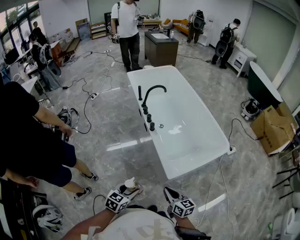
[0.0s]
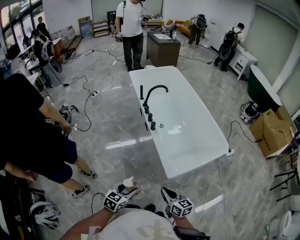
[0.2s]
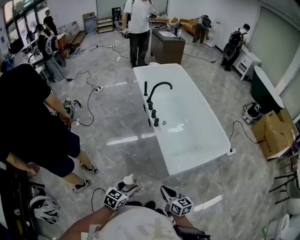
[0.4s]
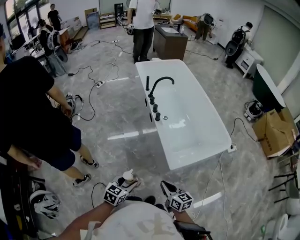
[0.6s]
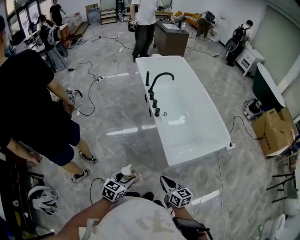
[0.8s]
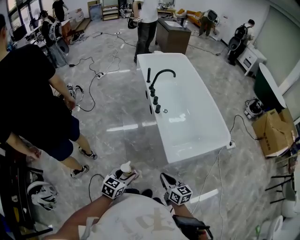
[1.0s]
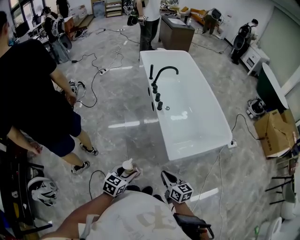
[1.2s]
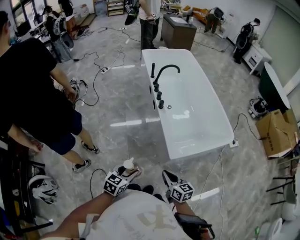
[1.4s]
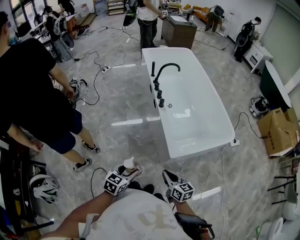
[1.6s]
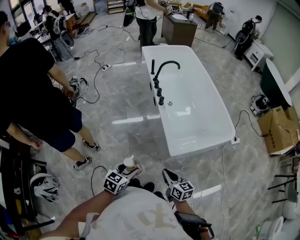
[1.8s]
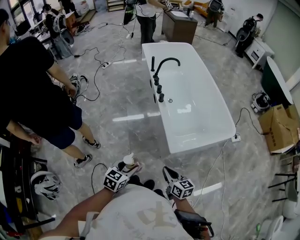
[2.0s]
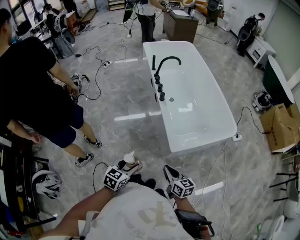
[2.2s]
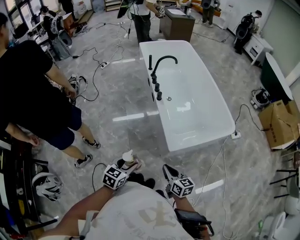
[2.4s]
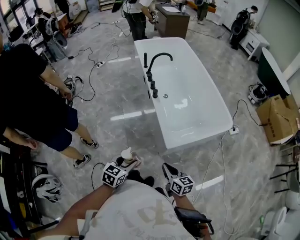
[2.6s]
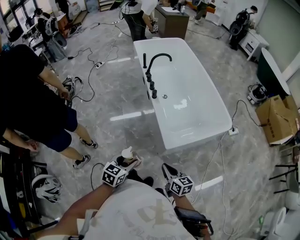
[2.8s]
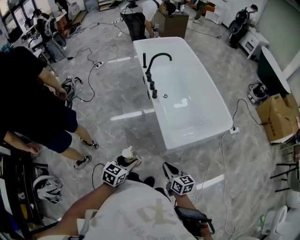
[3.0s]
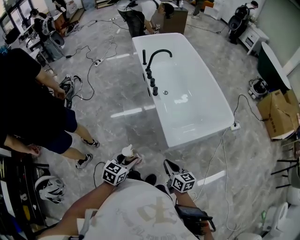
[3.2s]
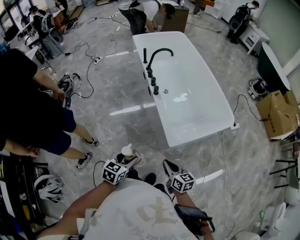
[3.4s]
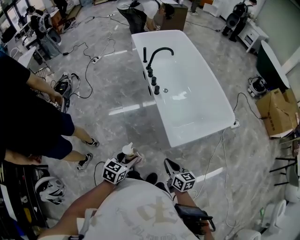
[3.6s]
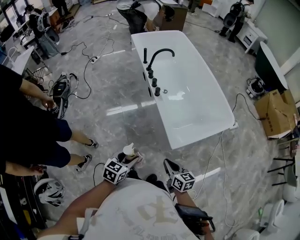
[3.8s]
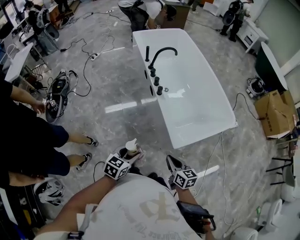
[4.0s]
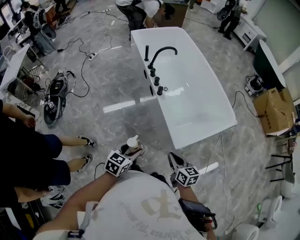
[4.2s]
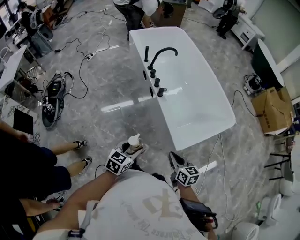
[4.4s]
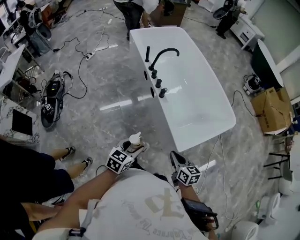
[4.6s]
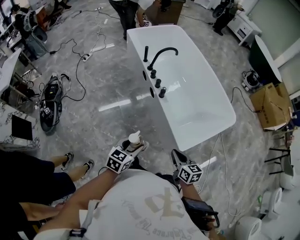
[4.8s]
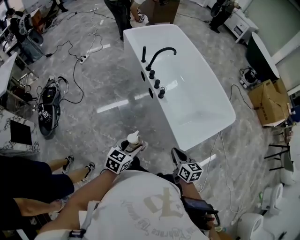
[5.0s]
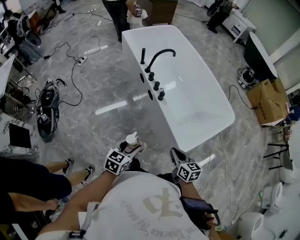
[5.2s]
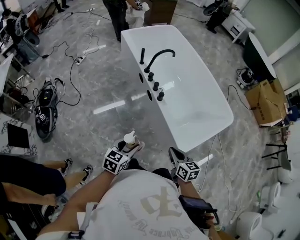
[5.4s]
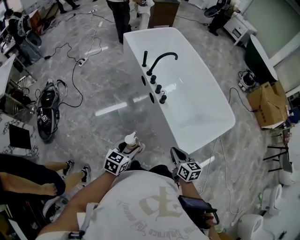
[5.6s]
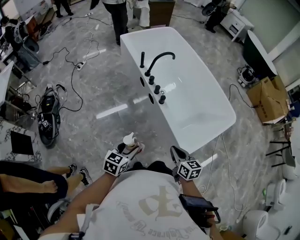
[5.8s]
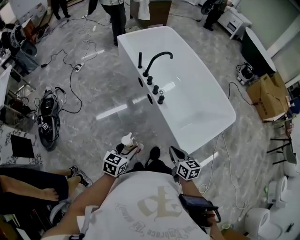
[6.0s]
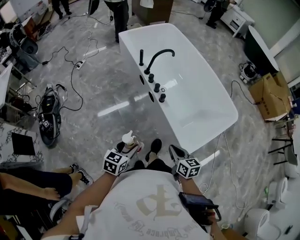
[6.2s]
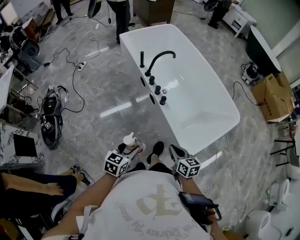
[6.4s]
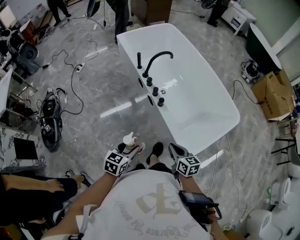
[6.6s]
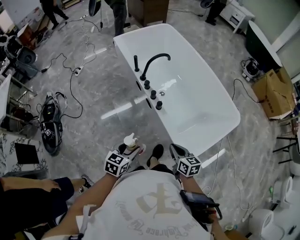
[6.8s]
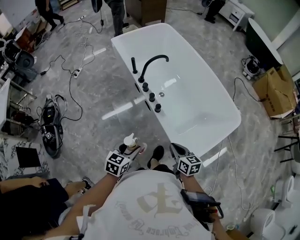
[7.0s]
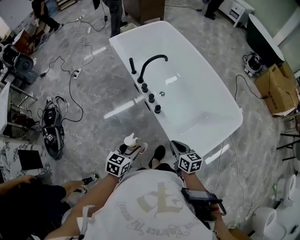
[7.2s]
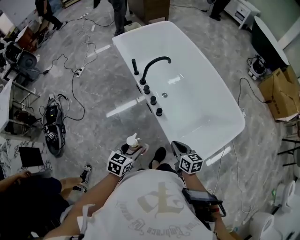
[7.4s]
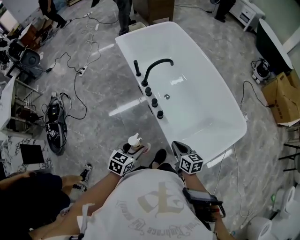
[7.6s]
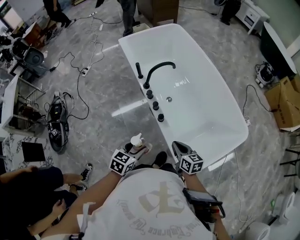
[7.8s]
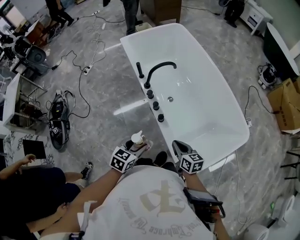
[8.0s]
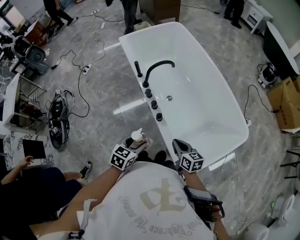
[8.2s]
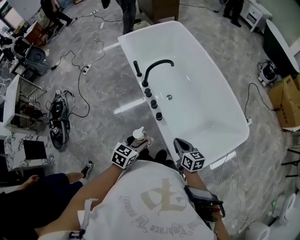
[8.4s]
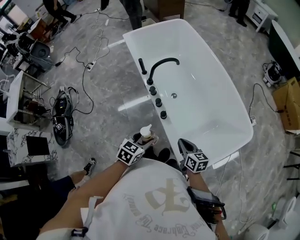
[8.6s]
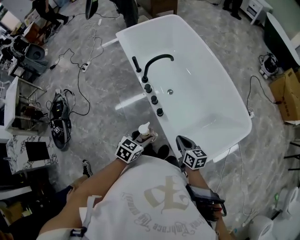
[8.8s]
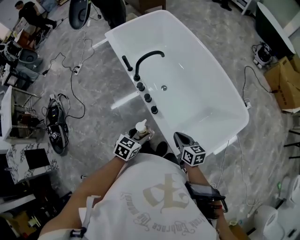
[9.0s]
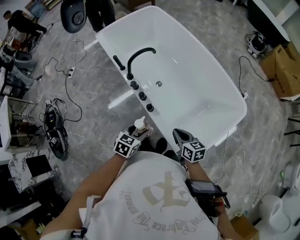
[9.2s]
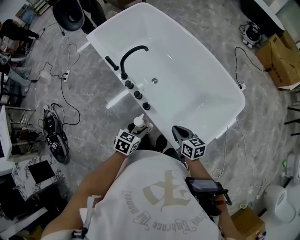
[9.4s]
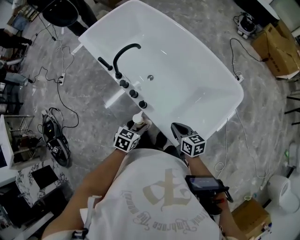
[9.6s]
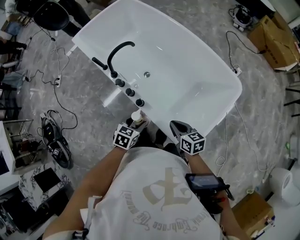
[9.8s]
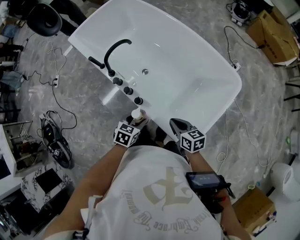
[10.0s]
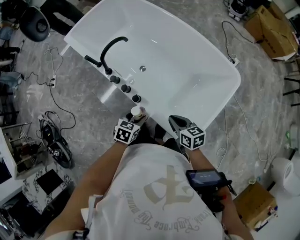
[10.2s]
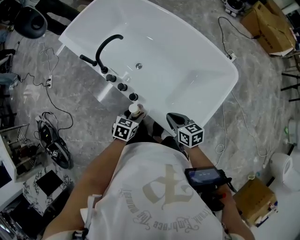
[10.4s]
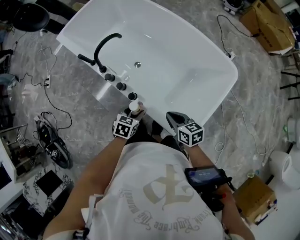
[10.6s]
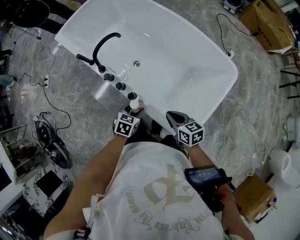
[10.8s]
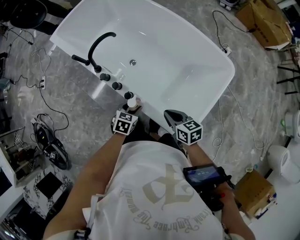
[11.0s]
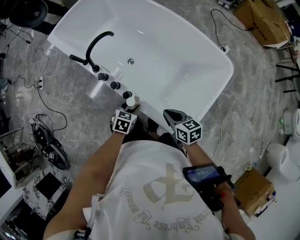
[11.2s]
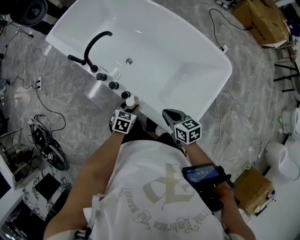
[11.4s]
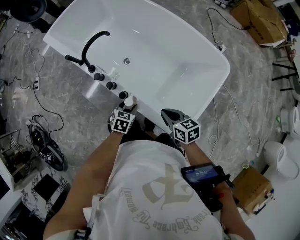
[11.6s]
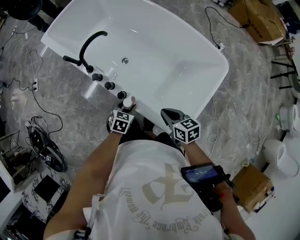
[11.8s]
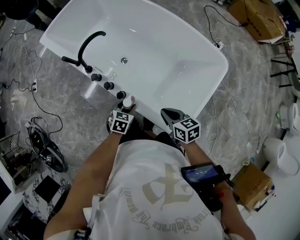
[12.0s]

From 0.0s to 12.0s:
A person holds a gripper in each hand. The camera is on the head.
From 0.0s to 1.6s: The left gripper changes place by some 5 cm.
From 1.6s to 3.0s: The grippers stay close to where they were, moving slightly.
From 3.0s to 4.4s: The grippers both shift forward and to the left by roughly 15 cm.
From 4.4s to 6.0s: The right gripper shifts roughly 10 cm forward and to the left. Meanwhile the left gripper is displaced to the left and forward by roughly 15 cm.
From 6.0s to 7.6s: The right gripper moves forward, some 20 cm, while the left gripper is displaced forward and to the right by some 20 cm.
From 7.6s to 9.0s: The right gripper shifts by roughly 5 cm, while the left gripper heads forward and to the right, covering roughly 10 cm.
From 9.0s to 10.4s: The left gripper is displaced downward, forward and to the right by some 10 cm.
From 10.4s to 12.0s: The left gripper travels downward by roughly 5 cm.

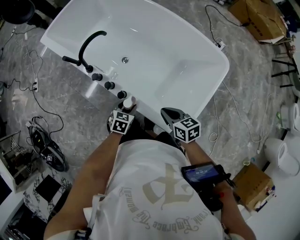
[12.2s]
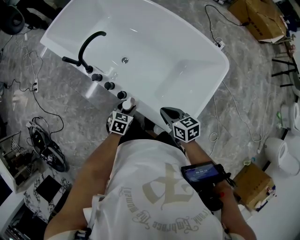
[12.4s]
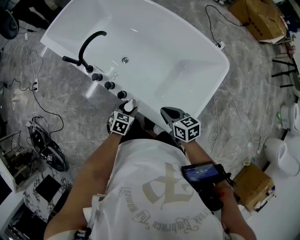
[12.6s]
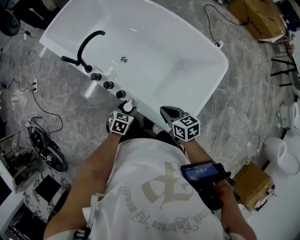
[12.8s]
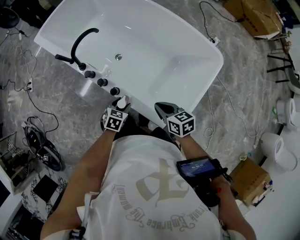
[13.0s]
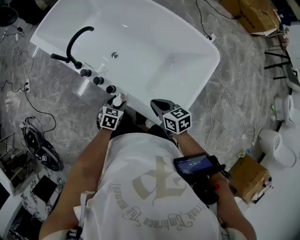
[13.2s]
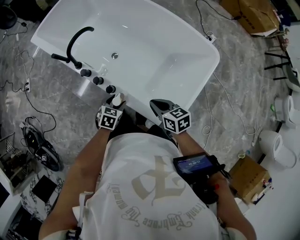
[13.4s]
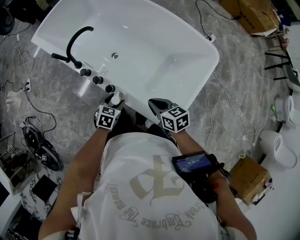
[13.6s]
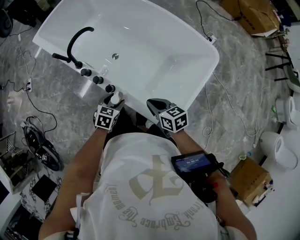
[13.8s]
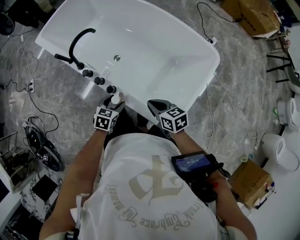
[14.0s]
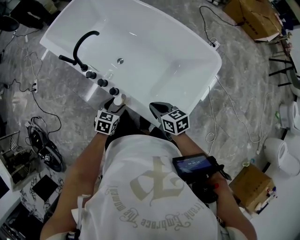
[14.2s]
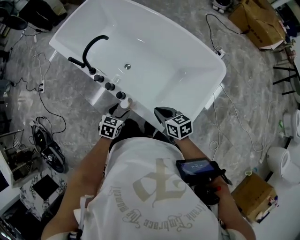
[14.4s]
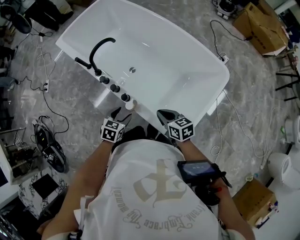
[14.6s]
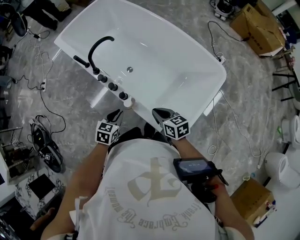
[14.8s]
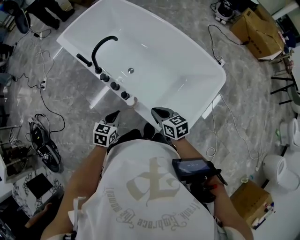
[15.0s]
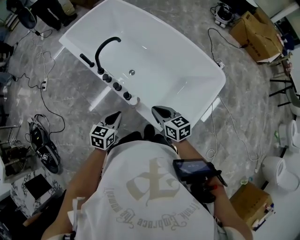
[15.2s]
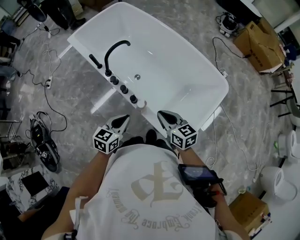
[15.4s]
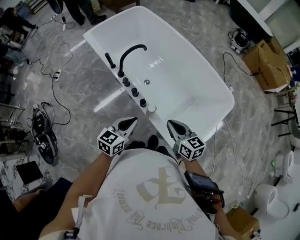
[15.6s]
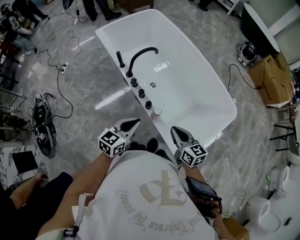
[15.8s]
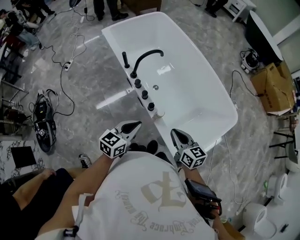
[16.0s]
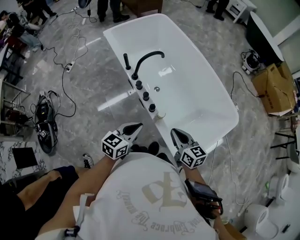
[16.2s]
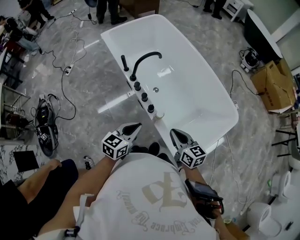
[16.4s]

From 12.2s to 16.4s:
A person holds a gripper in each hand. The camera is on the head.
From 12.2s to 13.6s: The grippers move only a little.
From 13.6s to 15.0s: The left gripper heads upward and to the left, covering approximately 10 cm, and closes up.
From 15.0s to 16.4s: The right gripper is displaced upward and to the left by about 10 cm. Meanwhile the left gripper shifts some 10 cm upward, and turns by approximately 20 degrees.

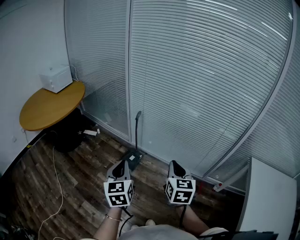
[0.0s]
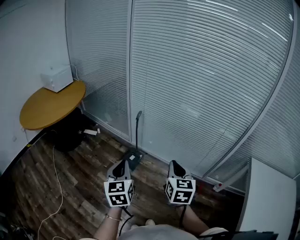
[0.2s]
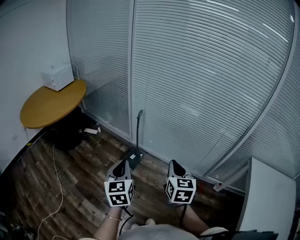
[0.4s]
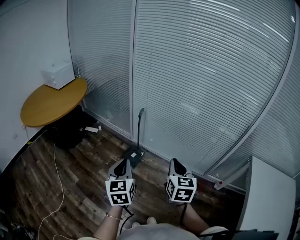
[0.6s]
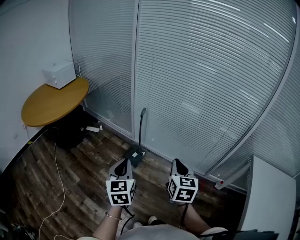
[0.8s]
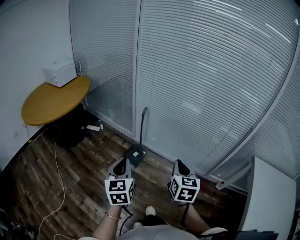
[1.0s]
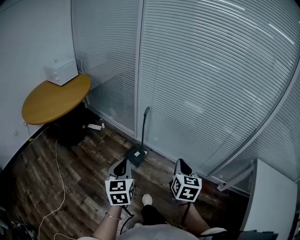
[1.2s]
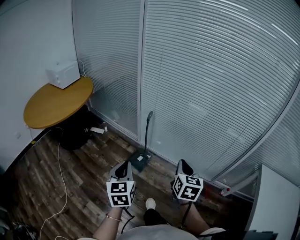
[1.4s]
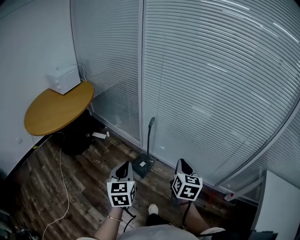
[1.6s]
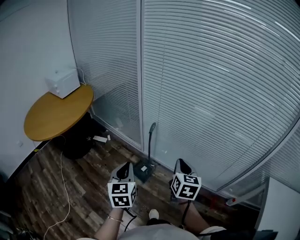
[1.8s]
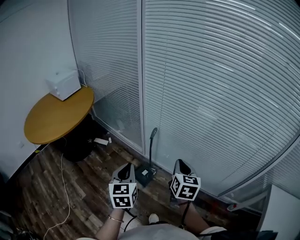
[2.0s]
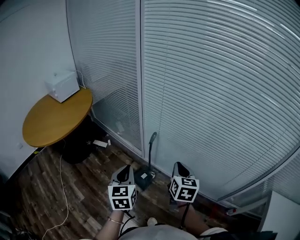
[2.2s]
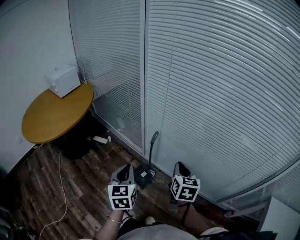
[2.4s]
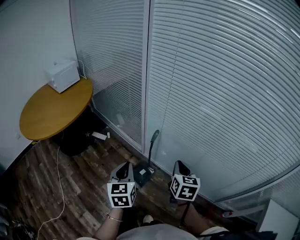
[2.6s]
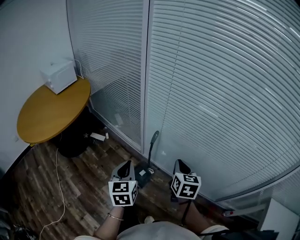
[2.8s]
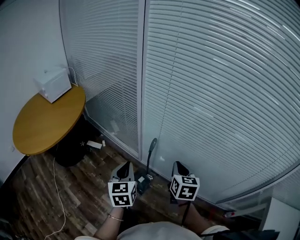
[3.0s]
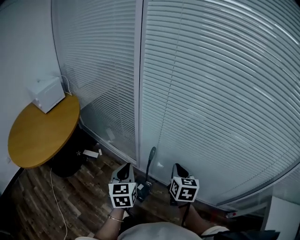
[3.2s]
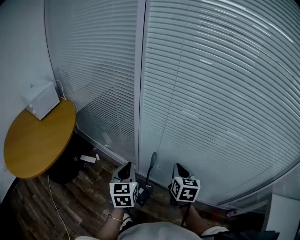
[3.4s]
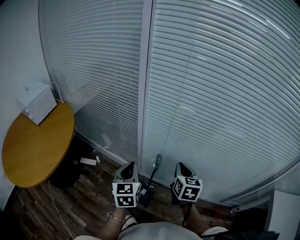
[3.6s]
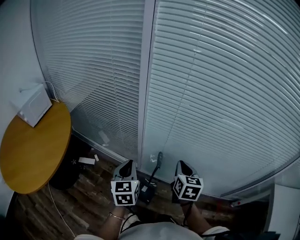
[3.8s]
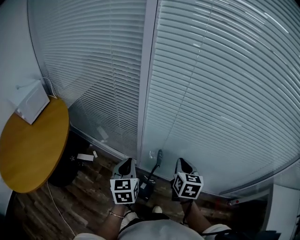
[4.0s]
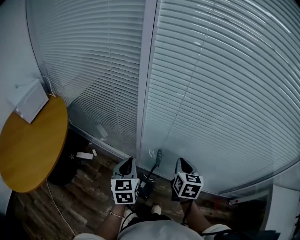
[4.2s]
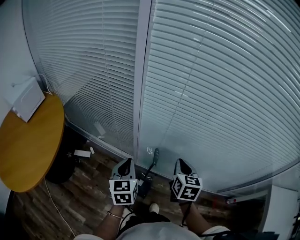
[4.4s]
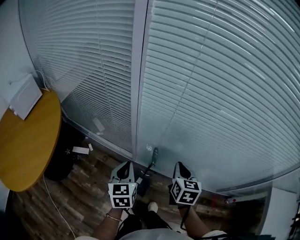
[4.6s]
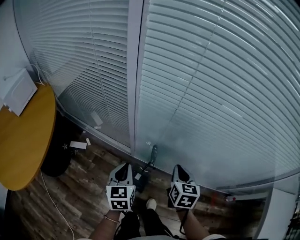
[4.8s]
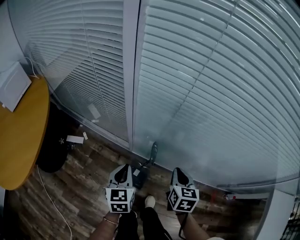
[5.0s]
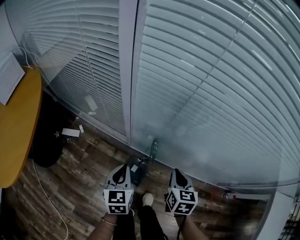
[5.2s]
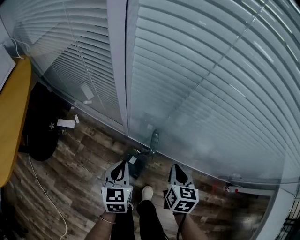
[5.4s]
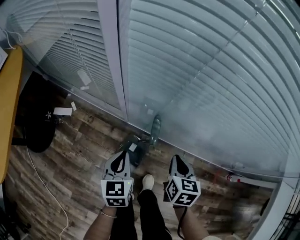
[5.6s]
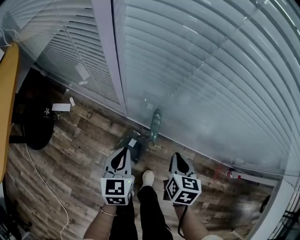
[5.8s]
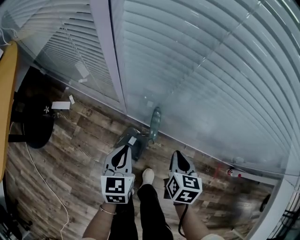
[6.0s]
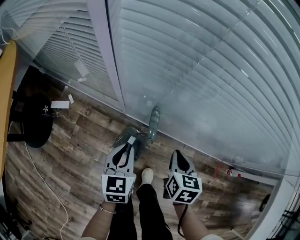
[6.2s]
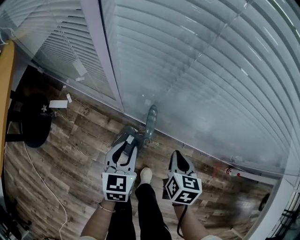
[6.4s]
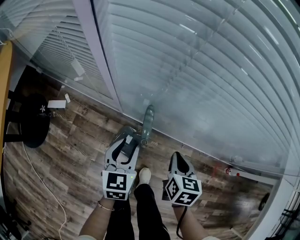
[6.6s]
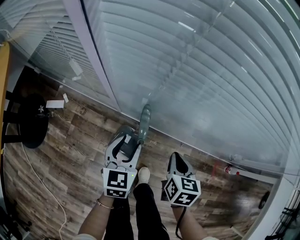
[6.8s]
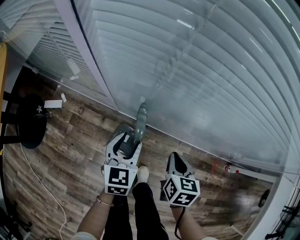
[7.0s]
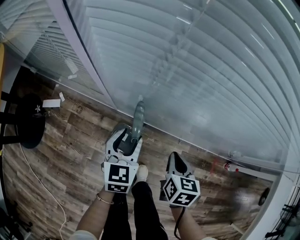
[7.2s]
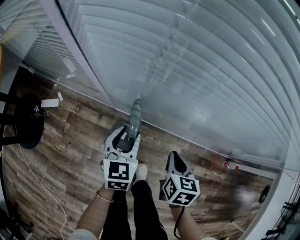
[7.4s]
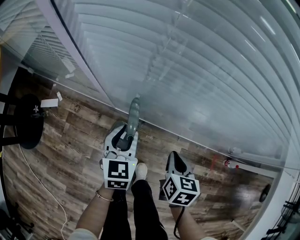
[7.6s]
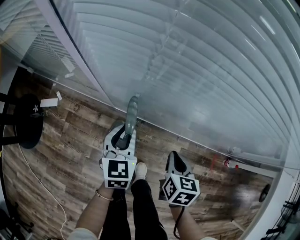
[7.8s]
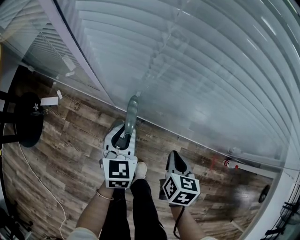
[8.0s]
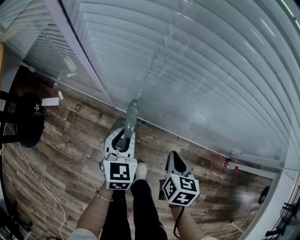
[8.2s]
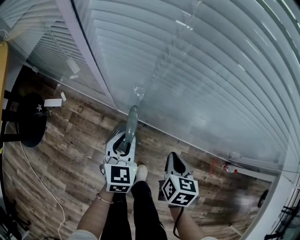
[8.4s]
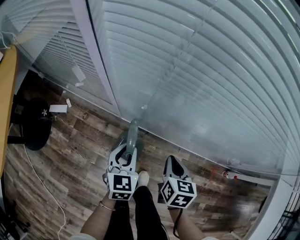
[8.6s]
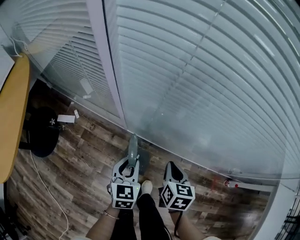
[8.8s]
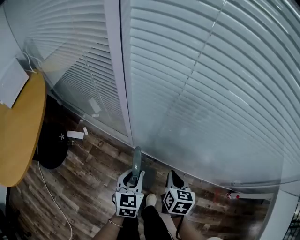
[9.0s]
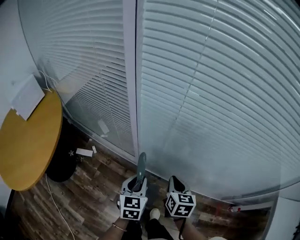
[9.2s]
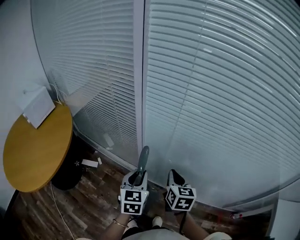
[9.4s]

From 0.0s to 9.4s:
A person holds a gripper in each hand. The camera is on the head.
From 0.0s to 1.6s: The left gripper shifts about 10 cm forward and to the left. The right gripper heads forward and downward, covering approximately 10 cm.
From 1.6s to 3.2s: The two grippers go roughly 25 cm forward.
From 3.2s to 4.8s: The left gripper goes about 15 cm forward and downward. Meanwhile the right gripper heads downward and forward, covering about 10 cm.
From 4.8s to 6.2s: Both grippers travel together downward, approximately 20 cm.
From 6.2s to 7.8s: The left gripper heads forward and to the right, covering some 10 cm, and opens, then closes once more. The right gripper heads to the right, covering roughly 5 cm.
From 7.8s to 9.4s: The left gripper travels upward by roughly 25 cm; the right gripper moves upward and to the left, about 30 cm, and swivels approximately 30 degrees.
